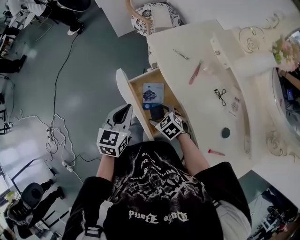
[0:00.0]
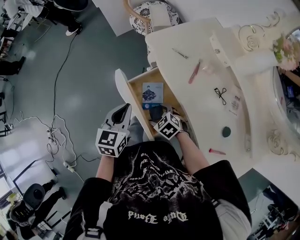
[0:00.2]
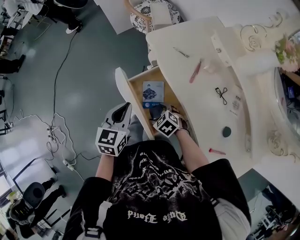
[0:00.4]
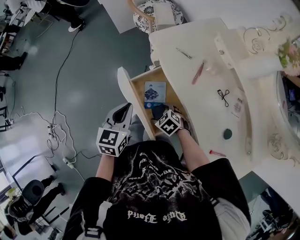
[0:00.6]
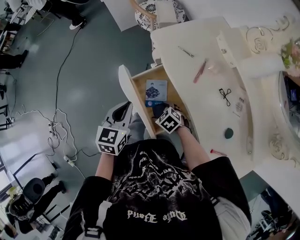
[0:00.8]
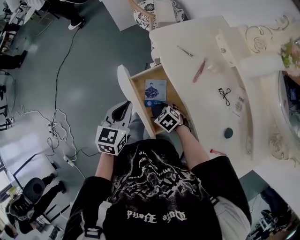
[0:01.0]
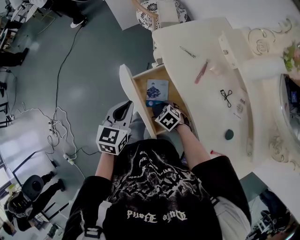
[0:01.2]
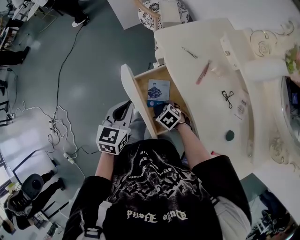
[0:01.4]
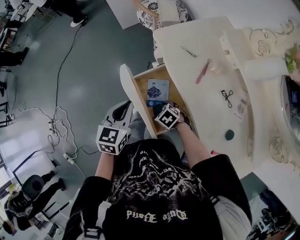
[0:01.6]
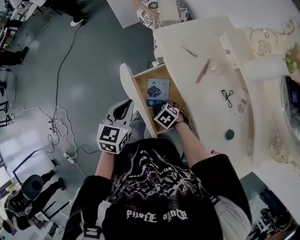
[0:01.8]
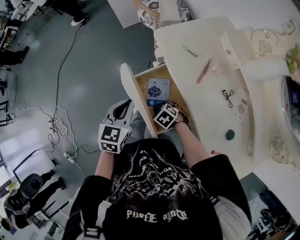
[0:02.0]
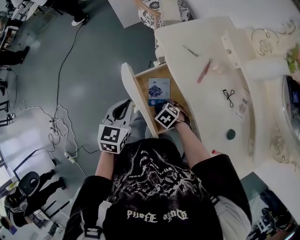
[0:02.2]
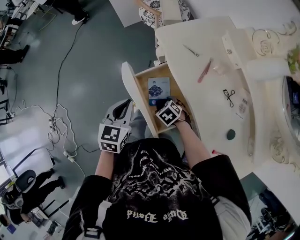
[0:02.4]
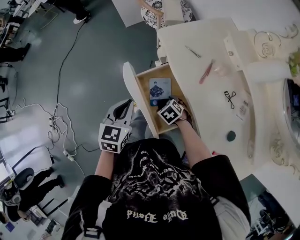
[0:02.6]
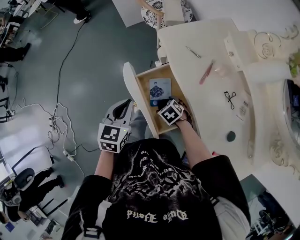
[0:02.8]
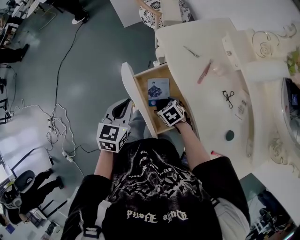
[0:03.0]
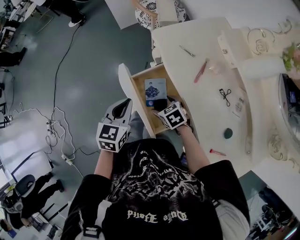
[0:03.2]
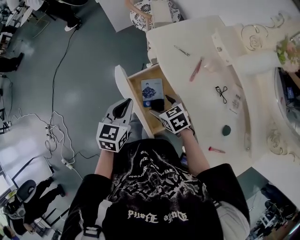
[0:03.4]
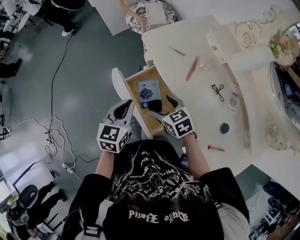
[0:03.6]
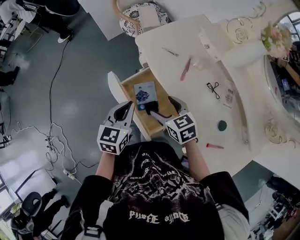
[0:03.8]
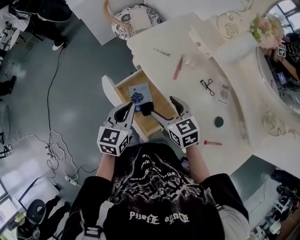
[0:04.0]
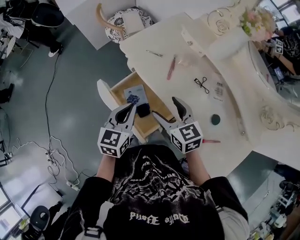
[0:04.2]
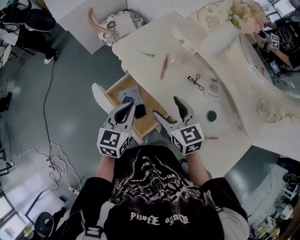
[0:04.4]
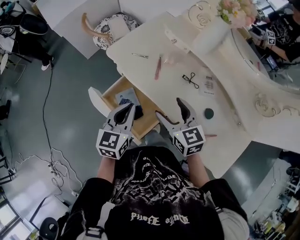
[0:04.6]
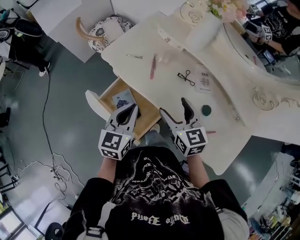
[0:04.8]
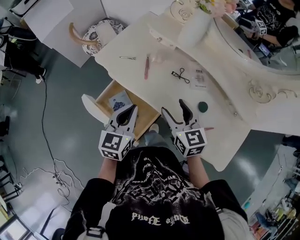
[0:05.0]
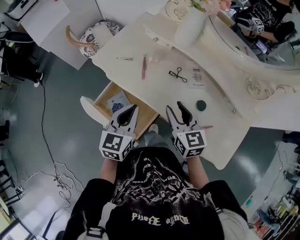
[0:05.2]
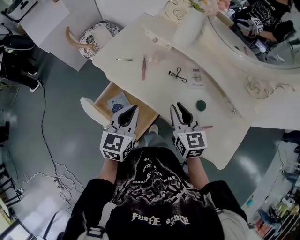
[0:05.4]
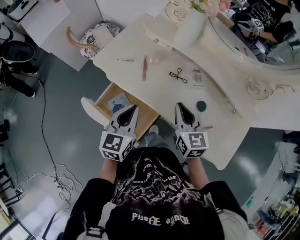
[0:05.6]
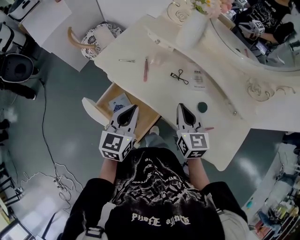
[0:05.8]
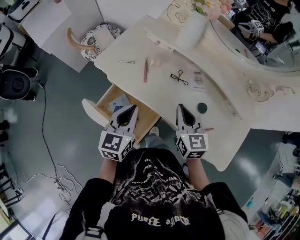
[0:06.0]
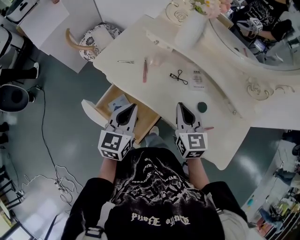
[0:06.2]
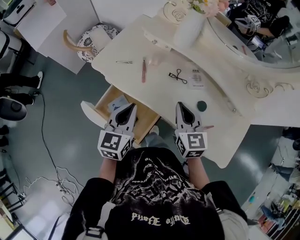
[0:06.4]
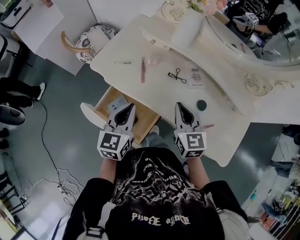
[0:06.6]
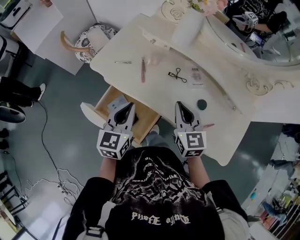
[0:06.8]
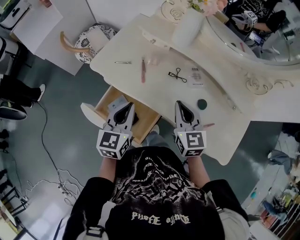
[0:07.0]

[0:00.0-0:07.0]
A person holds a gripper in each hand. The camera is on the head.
0:00.0 to 0:01.4: The right gripper shifts about 5 cm downward.
0:01.4 to 0:02.8: The grippers make only small movements.
0:02.8 to 0:04.2: The left gripper changes place by approximately 10 cm. Meanwhile the right gripper goes some 25 cm upward, and tips its fingers upward by about 40 degrees.
0:04.2 to 0:05.6: The right gripper shifts about 15 cm to the right, changes its angle by some 30 degrees, and closes, while the left gripper shifts approximately 10 cm to the right.
0:05.6 to 0:07.0: There are only small adjustments of the grippers.

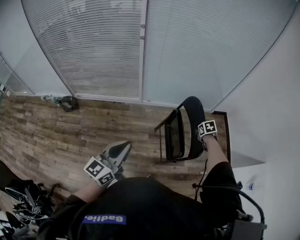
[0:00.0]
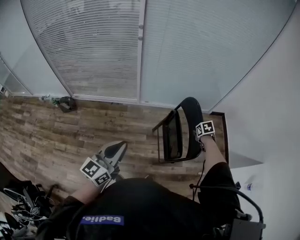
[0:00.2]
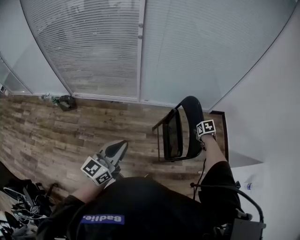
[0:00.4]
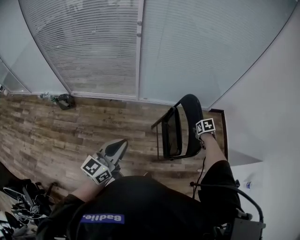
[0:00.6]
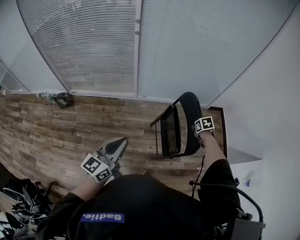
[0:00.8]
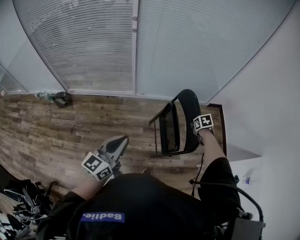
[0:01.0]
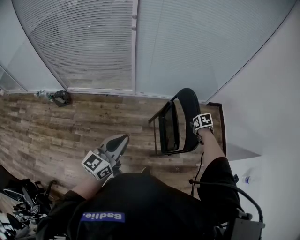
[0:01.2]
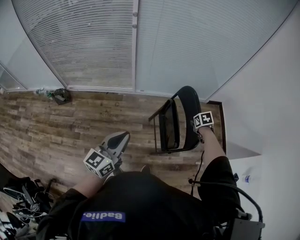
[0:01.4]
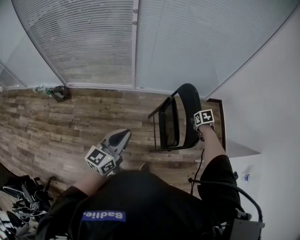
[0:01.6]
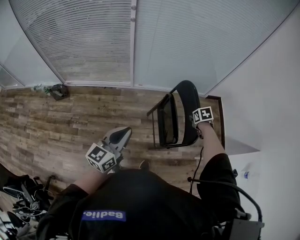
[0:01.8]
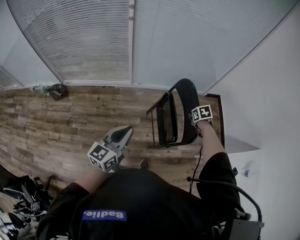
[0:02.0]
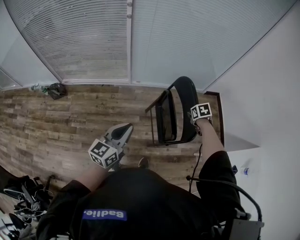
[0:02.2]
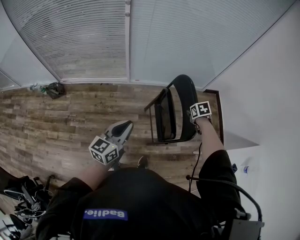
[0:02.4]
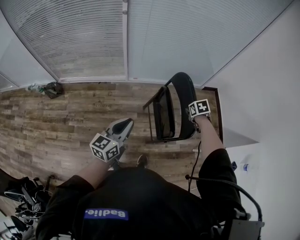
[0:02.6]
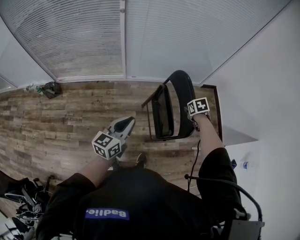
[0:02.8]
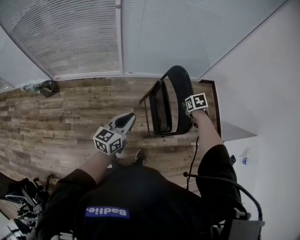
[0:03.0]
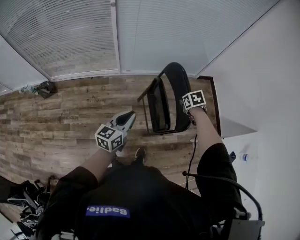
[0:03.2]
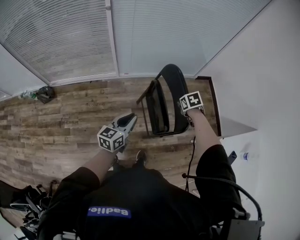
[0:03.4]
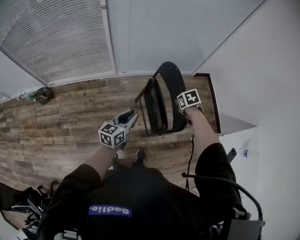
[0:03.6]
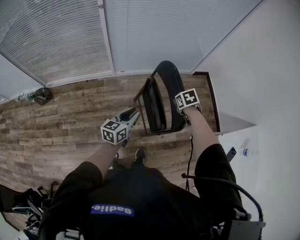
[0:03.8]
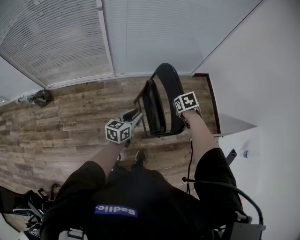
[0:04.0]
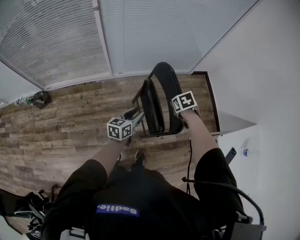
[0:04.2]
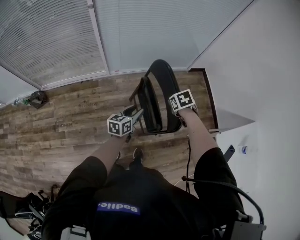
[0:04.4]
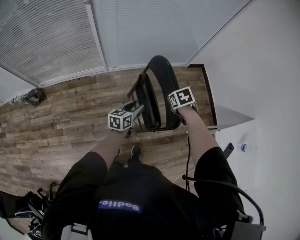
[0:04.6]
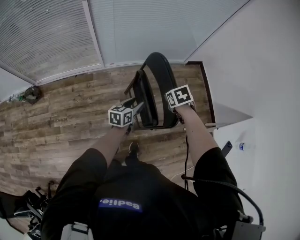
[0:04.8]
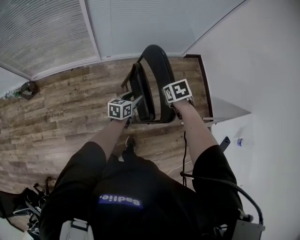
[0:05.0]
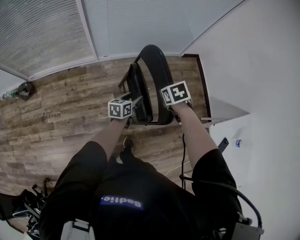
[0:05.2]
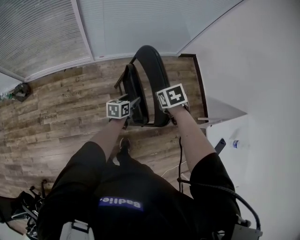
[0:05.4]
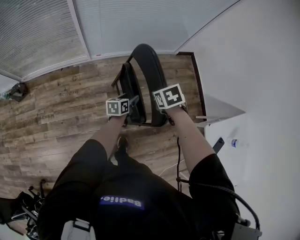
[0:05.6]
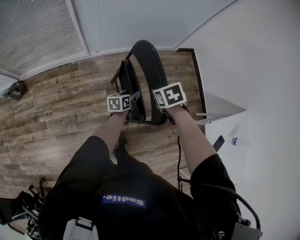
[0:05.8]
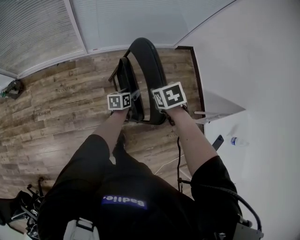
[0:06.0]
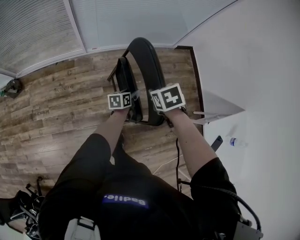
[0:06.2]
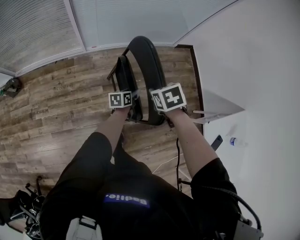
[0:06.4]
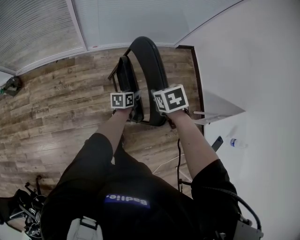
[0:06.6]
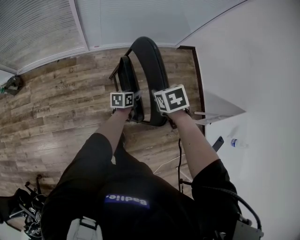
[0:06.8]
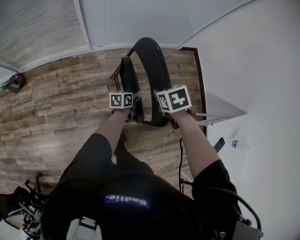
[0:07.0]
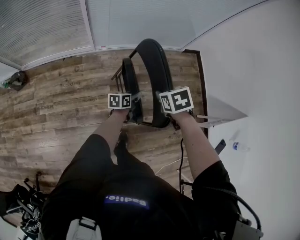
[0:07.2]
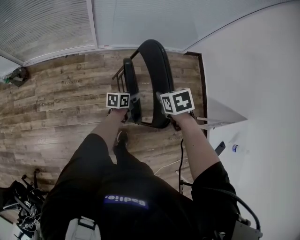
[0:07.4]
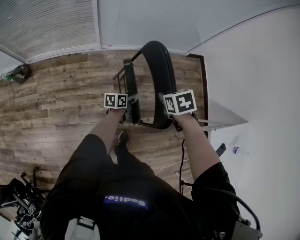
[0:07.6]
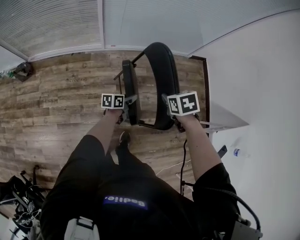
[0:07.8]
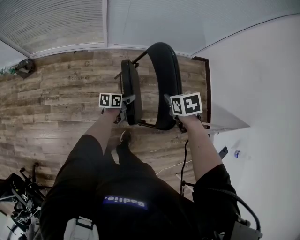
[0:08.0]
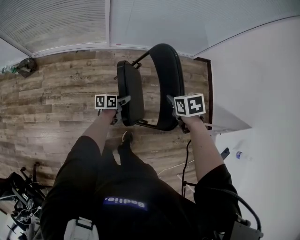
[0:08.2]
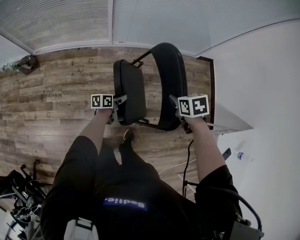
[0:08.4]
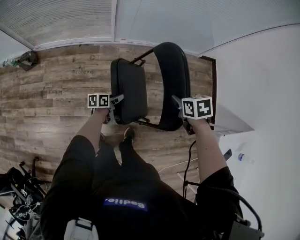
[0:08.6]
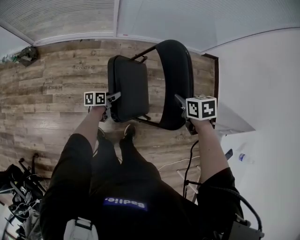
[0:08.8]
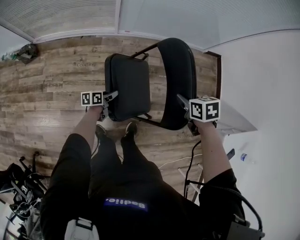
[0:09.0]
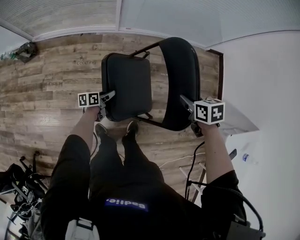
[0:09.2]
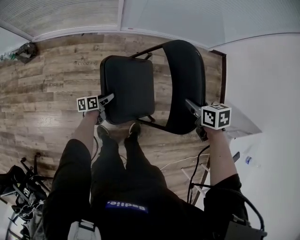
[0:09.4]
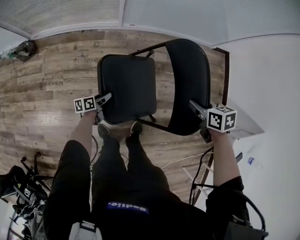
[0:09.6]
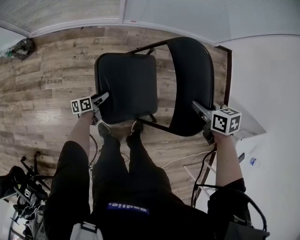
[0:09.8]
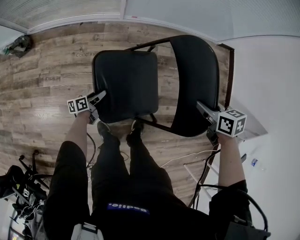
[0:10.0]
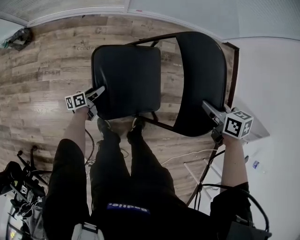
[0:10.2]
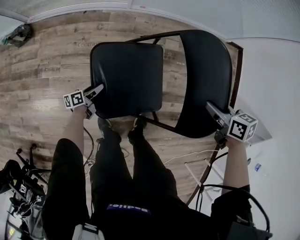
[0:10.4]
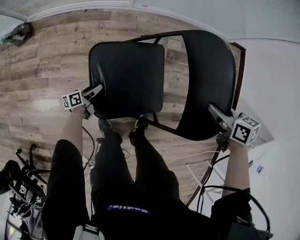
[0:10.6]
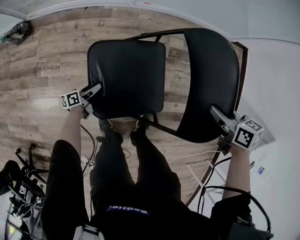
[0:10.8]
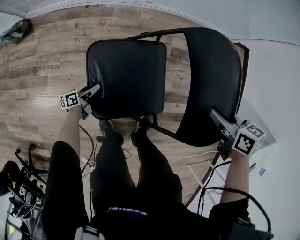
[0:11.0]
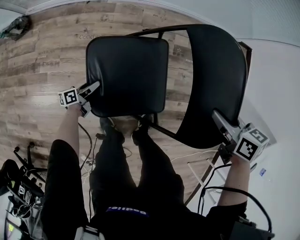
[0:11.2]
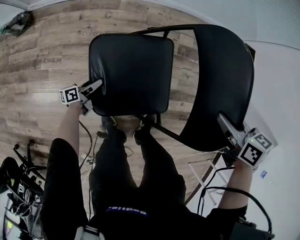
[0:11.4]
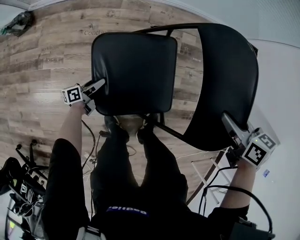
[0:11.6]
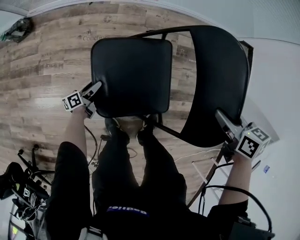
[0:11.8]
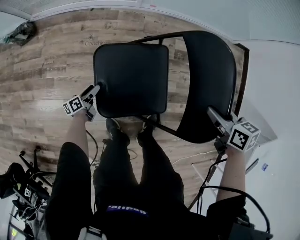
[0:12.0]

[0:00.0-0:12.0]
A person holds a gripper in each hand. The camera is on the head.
0:00.0 to 0:01.6: The left gripper changes place by roughly 5 cm.
0:01.6 to 0:03.0: The left gripper heads downward, forward and to the right, covering some 10 cm.
0:03.0 to 0:04.4: The left gripper travels downward, to the right and forward by about 20 cm, and opens up.
0:04.4 to 0:06.0: The left gripper travels downward, to the right and forward by roughly 20 cm.
0:06.0 to 0:07.6: Both grippers move to the left, some 5 cm.
0:07.6 to 0:09.0: The left gripper heads to the left and downward, covering some 25 cm, while the right gripper heads downward, covering some 5 cm.
0:09.0 to 0:10.4: The right gripper is displaced downward by approximately 10 cm. Meanwhile the left gripper heads downward and to the left, covering roughly 25 cm.
0:10.4 to 0:12.0: Both grippers travel together to the left, about 10 cm.

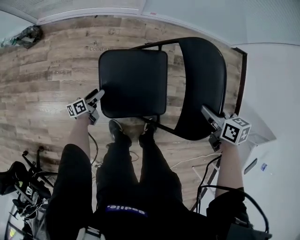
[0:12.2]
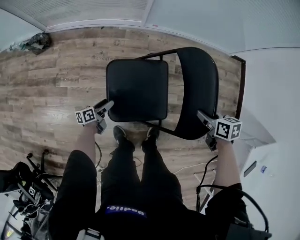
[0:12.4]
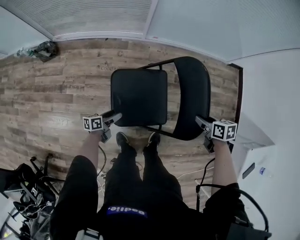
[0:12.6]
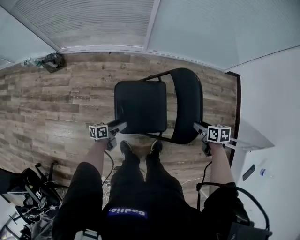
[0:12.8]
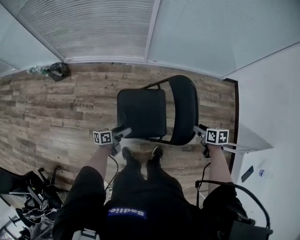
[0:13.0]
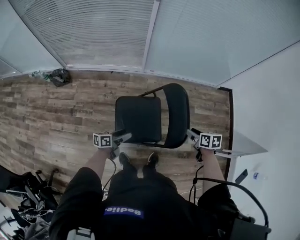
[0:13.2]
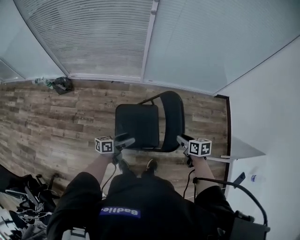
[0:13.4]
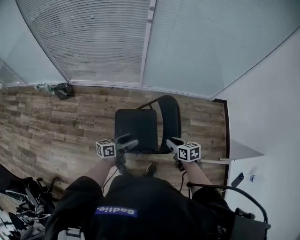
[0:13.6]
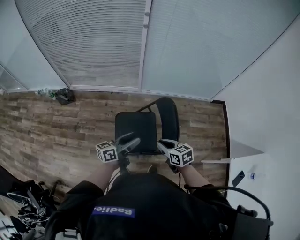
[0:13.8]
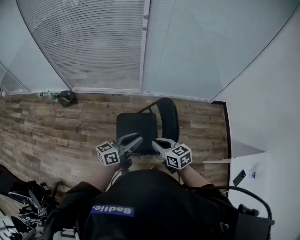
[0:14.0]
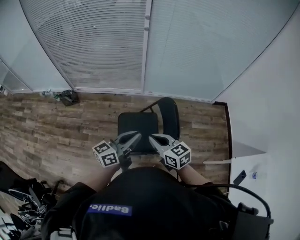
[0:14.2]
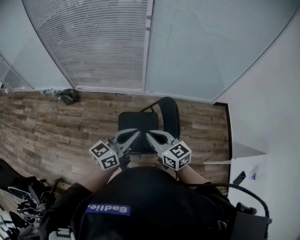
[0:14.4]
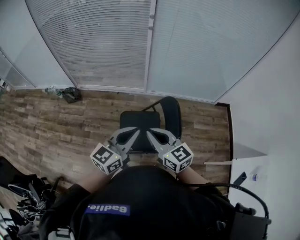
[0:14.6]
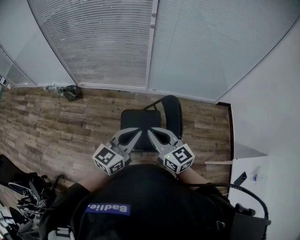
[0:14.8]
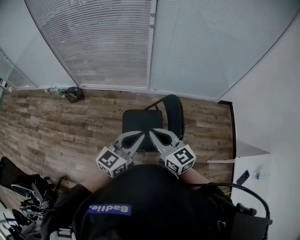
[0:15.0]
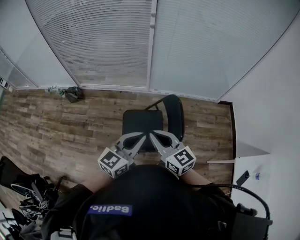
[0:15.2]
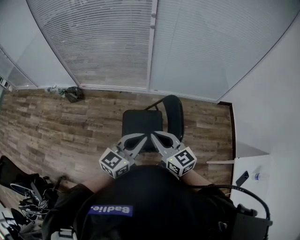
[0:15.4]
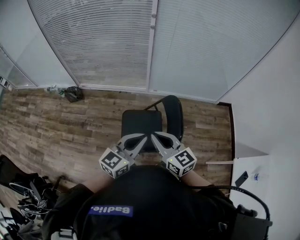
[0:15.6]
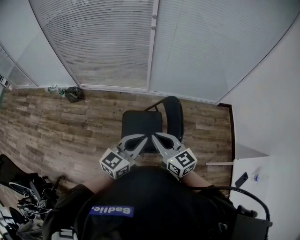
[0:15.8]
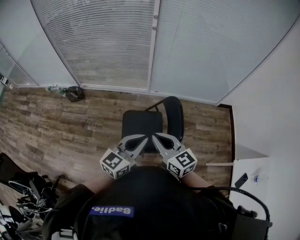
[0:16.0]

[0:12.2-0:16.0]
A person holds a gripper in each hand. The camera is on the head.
0:12.2 to 0:13.4: The right gripper shifts about 15 cm upward and backward. Meanwhile the left gripper travels upward by approximately 40 cm, and changes its angle by roughly 30 degrees.
0:13.4 to 0:14.8: The right gripper goes about 30 cm upward and to the left, tips its fingers upward by about 40 degrees, and closes its fingers, while the left gripper is displaced upward by about 30 cm, twists approximately 40 degrees clockwise, seen from behind, and closes.
0:14.8 to 0:16.0: The grippers make only small movements.

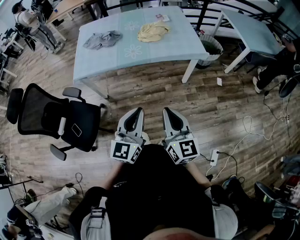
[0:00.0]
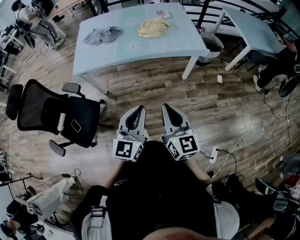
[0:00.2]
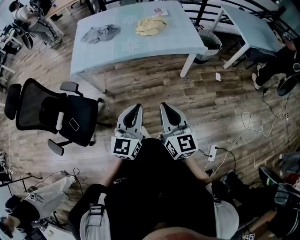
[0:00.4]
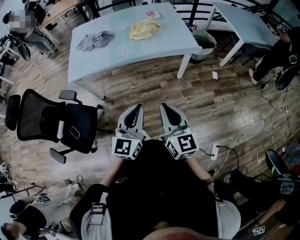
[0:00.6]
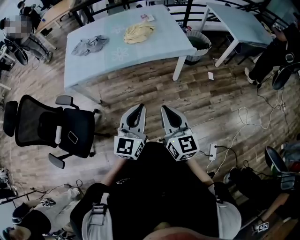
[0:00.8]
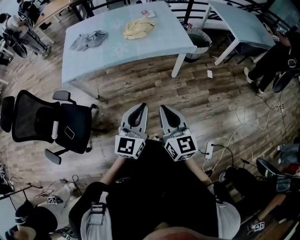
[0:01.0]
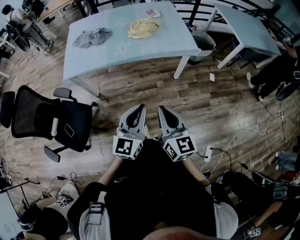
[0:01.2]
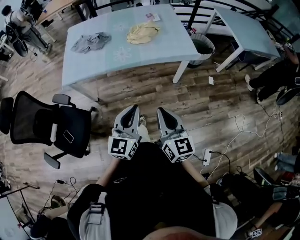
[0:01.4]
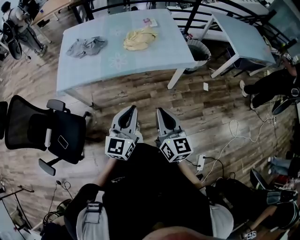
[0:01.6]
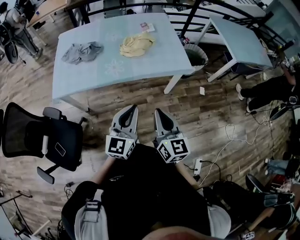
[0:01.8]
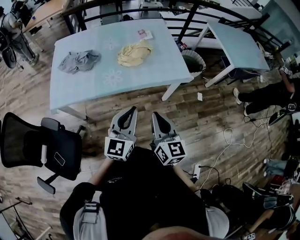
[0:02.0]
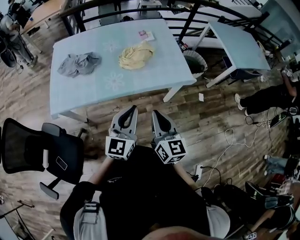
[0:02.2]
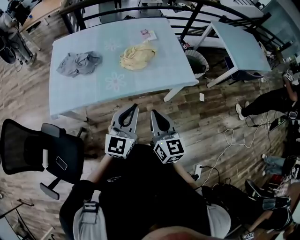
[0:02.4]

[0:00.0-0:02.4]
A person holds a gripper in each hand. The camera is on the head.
0:00.0 to 0:01.2: The left gripper heads to the right, covering some 5 cm.
0:01.2 to 0:02.4: The two grippers go roughly 25 cm forward.
